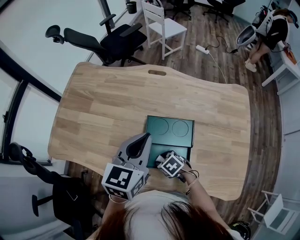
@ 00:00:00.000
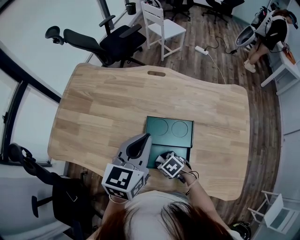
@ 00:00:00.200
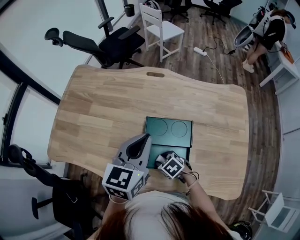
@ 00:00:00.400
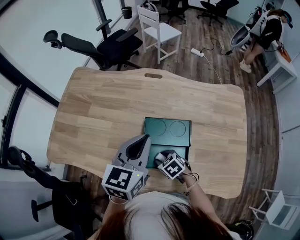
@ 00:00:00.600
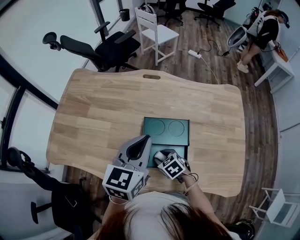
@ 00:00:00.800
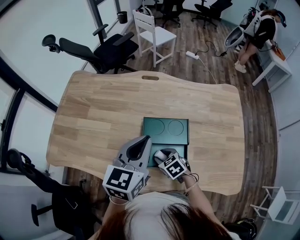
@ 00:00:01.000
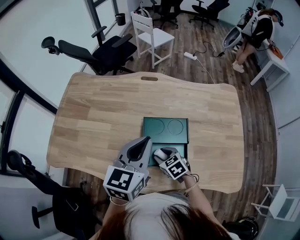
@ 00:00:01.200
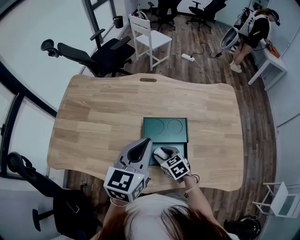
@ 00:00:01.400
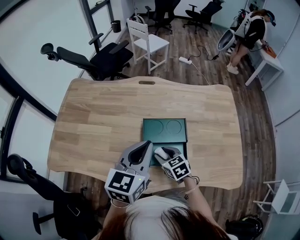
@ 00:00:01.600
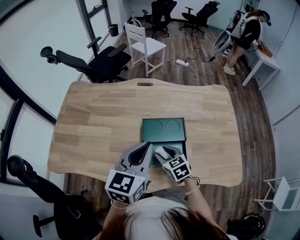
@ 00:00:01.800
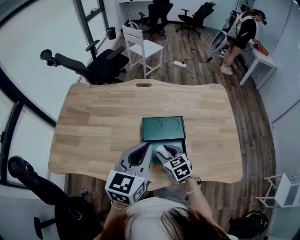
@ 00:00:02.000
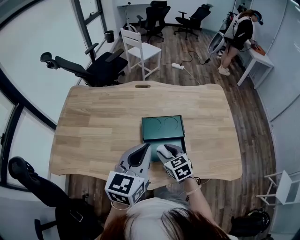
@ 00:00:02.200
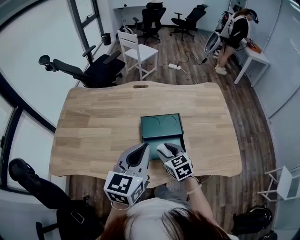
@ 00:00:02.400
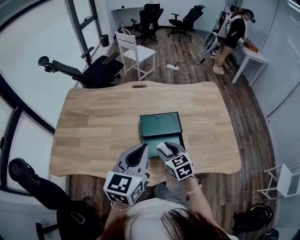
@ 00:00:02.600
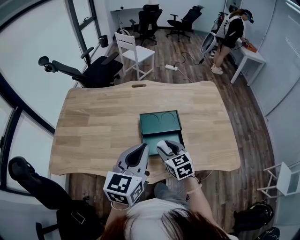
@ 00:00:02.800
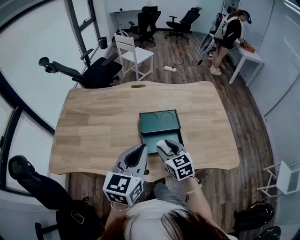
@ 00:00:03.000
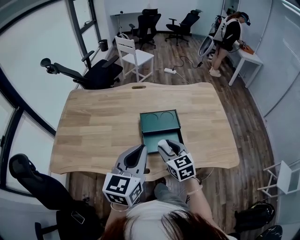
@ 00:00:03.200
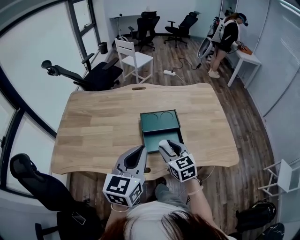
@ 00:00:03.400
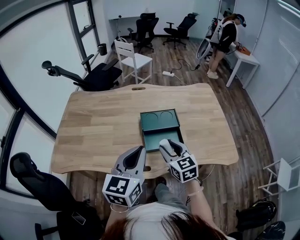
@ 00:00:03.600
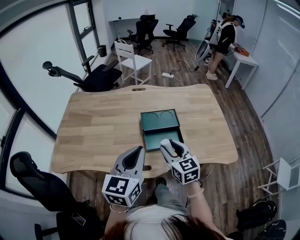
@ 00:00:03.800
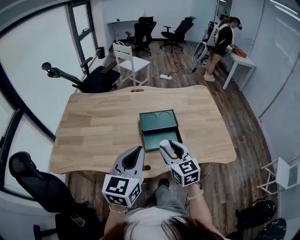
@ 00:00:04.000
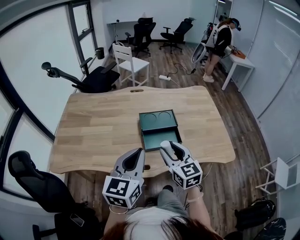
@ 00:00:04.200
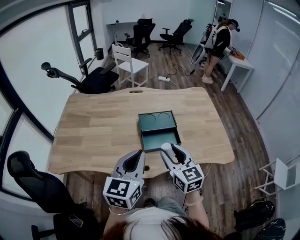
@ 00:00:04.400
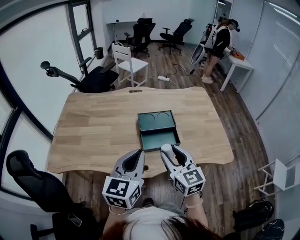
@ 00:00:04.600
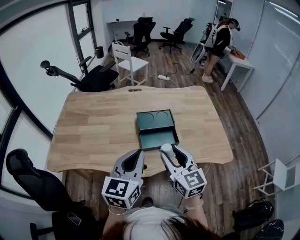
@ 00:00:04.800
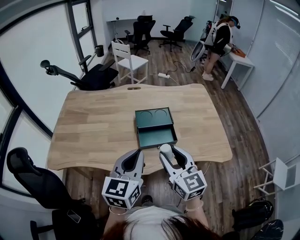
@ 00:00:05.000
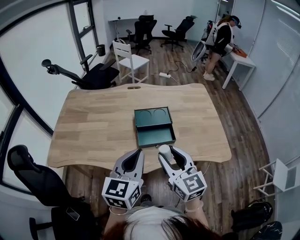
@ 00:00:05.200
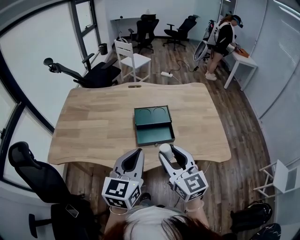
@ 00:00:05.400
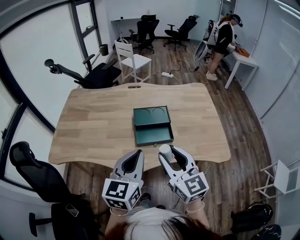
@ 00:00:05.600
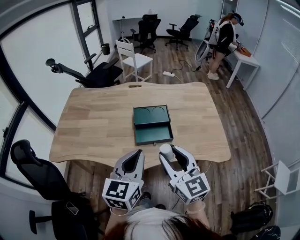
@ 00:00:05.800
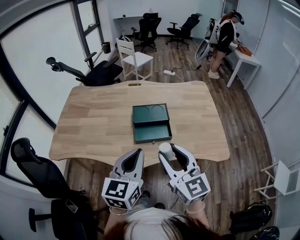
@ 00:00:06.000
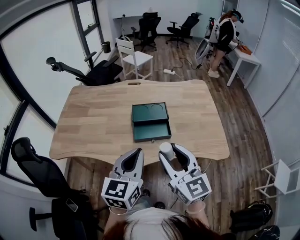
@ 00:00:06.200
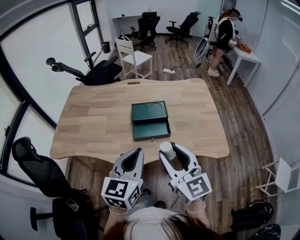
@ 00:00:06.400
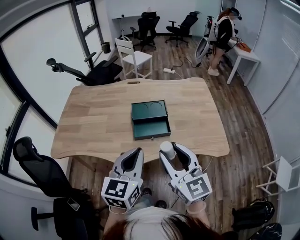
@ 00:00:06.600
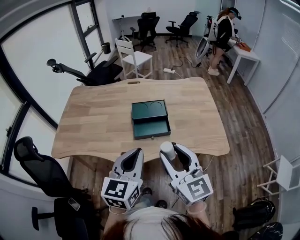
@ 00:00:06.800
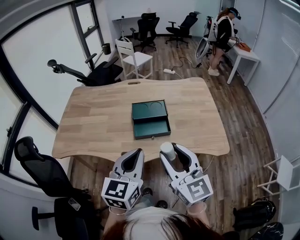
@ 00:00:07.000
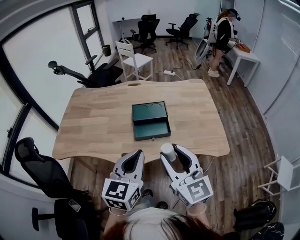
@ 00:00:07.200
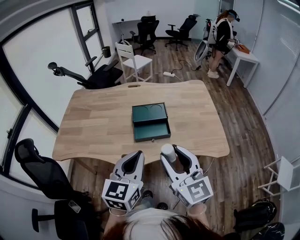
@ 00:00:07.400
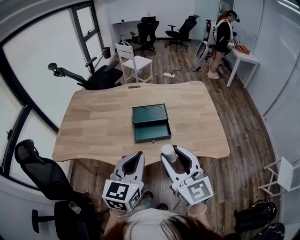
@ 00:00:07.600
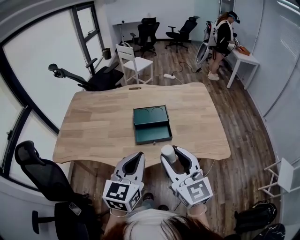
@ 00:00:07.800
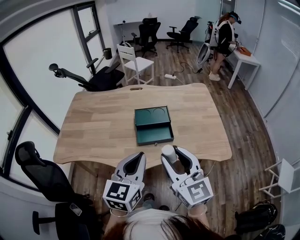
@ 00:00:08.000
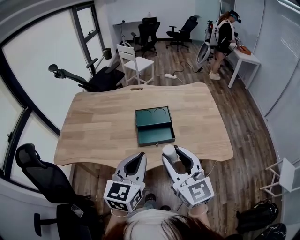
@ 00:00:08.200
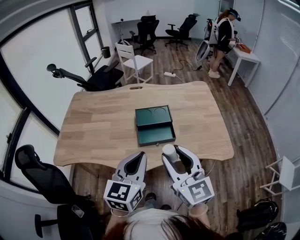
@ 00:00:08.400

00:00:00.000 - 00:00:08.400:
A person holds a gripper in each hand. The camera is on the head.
00:00:00.000 - 00:00:01.400: The left gripper shifts by approximately 5 cm, while the right gripper is displaced upward by about 10 cm, and rotates about 30 degrees.
00:00:01.400 - 00:00:02.800: The left gripper shifts about 10 cm backward. Meanwhile the right gripper is displaced upward and backward by about 10 cm, and changes its angle by about 20 degrees.
00:00:02.800 - 00:00:04.200: The right gripper travels backward and upward by some 15 cm. Meanwhile the left gripper shifts about 10 cm backward.
00:00:04.200 - 00:00:05.600: The right gripper travels backward, upward and to the right by some 10 cm; the left gripper moves to the right, approximately 5 cm.
00:00:05.600 - 00:00:07.000: The left gripper ends up some 5 cm from where it was; the right gripper travels backward by some 5 cm.
00:00:07.000 - 00:00:08.400: The grippers make only small movements.

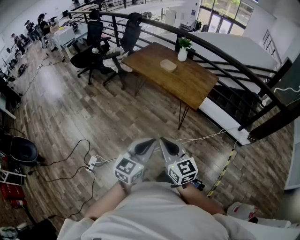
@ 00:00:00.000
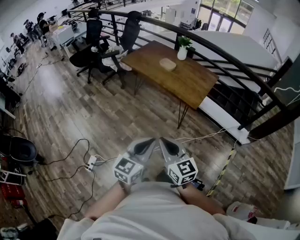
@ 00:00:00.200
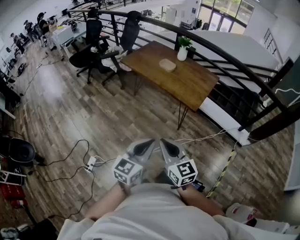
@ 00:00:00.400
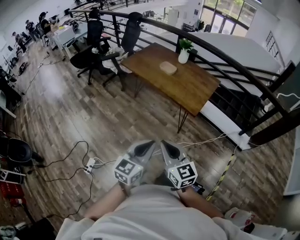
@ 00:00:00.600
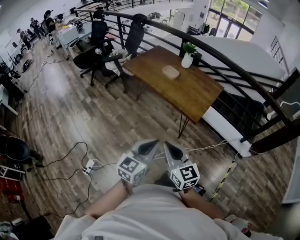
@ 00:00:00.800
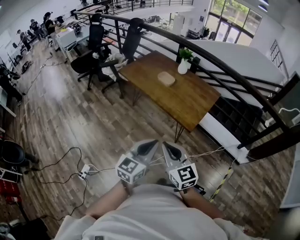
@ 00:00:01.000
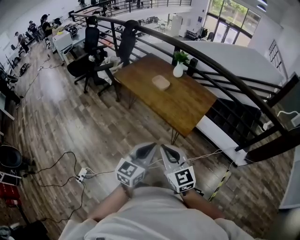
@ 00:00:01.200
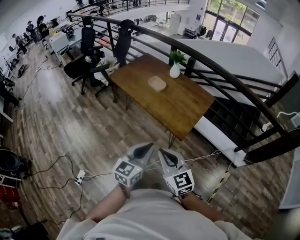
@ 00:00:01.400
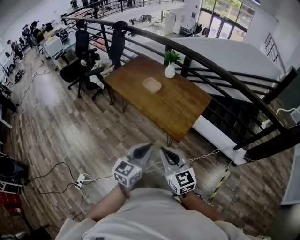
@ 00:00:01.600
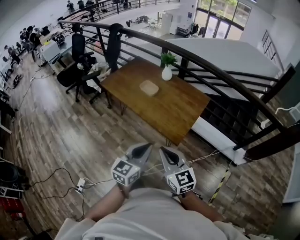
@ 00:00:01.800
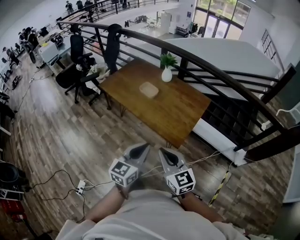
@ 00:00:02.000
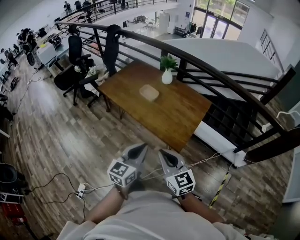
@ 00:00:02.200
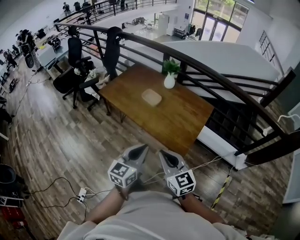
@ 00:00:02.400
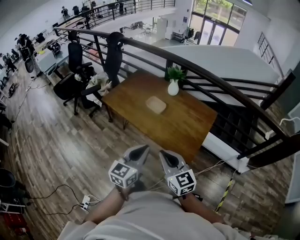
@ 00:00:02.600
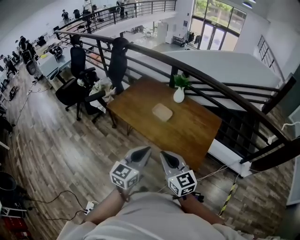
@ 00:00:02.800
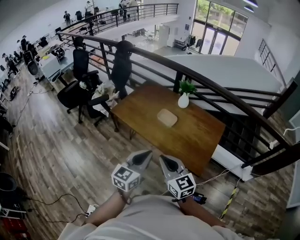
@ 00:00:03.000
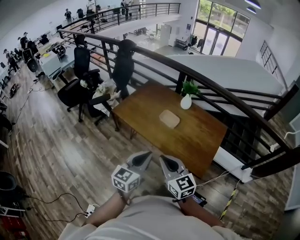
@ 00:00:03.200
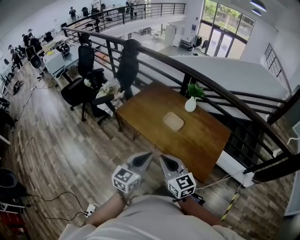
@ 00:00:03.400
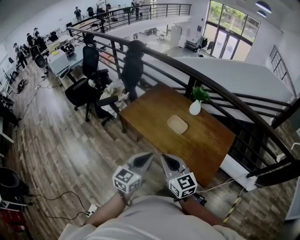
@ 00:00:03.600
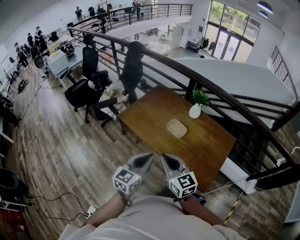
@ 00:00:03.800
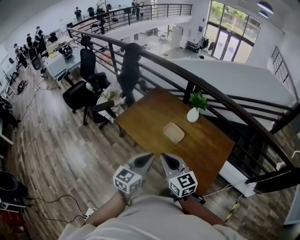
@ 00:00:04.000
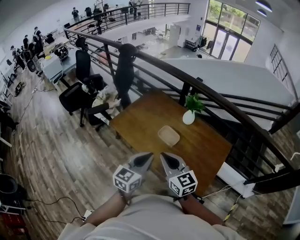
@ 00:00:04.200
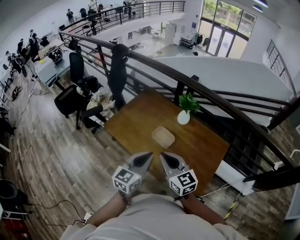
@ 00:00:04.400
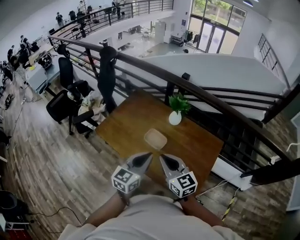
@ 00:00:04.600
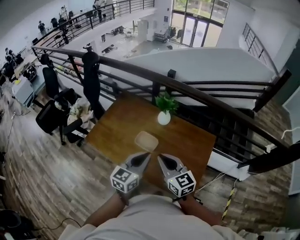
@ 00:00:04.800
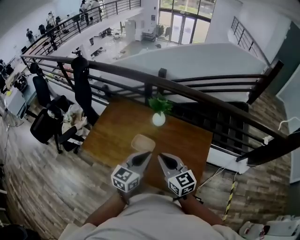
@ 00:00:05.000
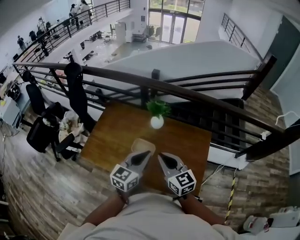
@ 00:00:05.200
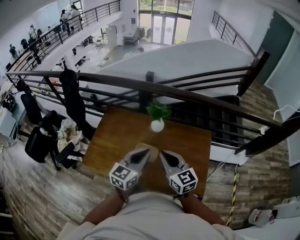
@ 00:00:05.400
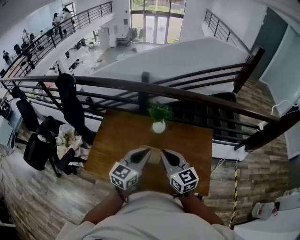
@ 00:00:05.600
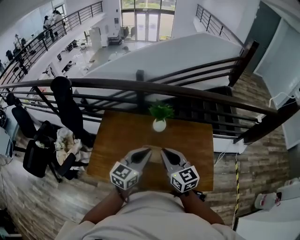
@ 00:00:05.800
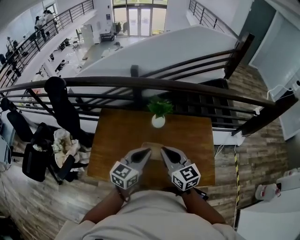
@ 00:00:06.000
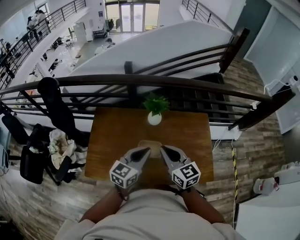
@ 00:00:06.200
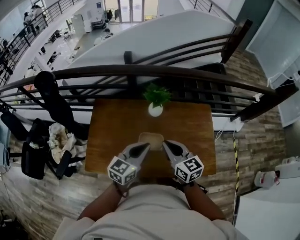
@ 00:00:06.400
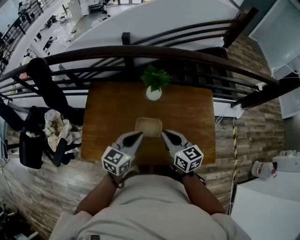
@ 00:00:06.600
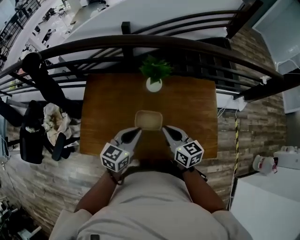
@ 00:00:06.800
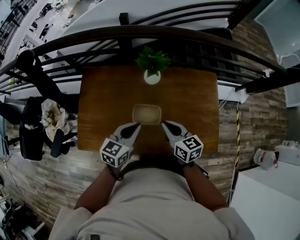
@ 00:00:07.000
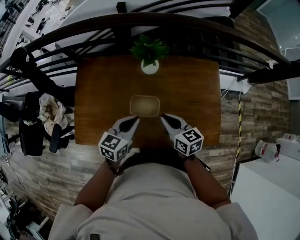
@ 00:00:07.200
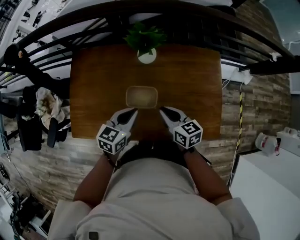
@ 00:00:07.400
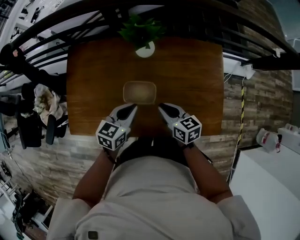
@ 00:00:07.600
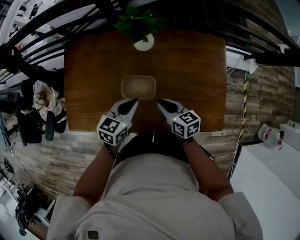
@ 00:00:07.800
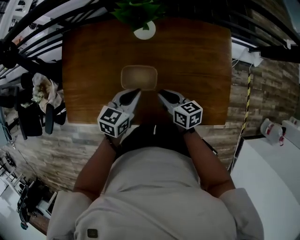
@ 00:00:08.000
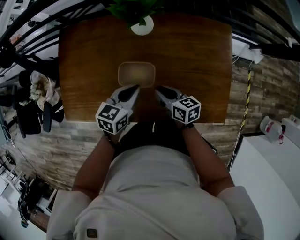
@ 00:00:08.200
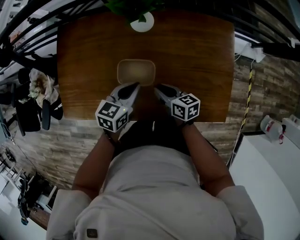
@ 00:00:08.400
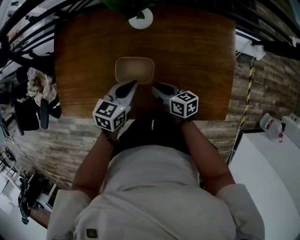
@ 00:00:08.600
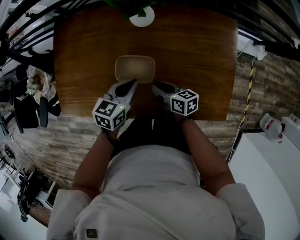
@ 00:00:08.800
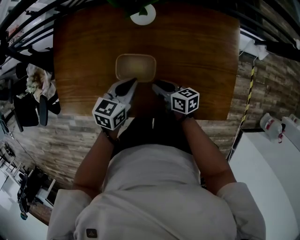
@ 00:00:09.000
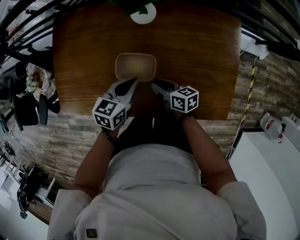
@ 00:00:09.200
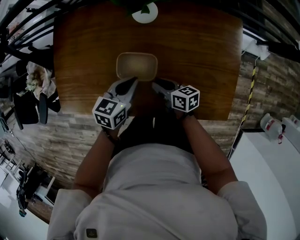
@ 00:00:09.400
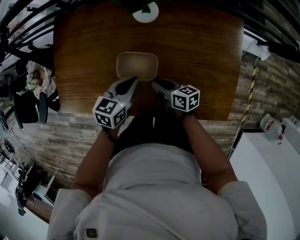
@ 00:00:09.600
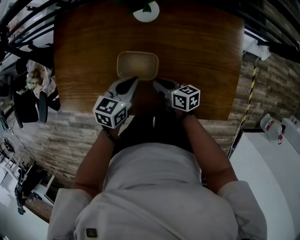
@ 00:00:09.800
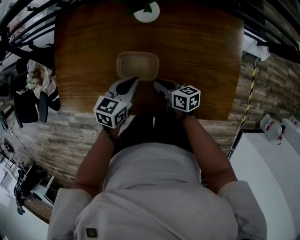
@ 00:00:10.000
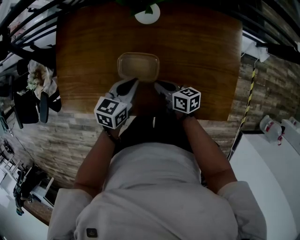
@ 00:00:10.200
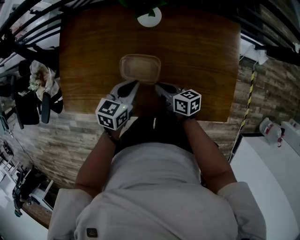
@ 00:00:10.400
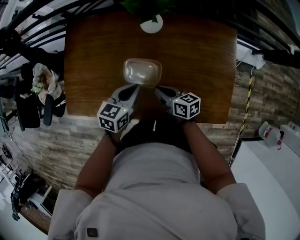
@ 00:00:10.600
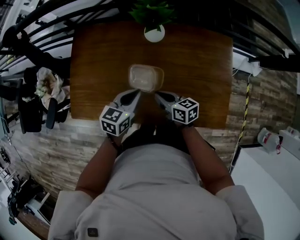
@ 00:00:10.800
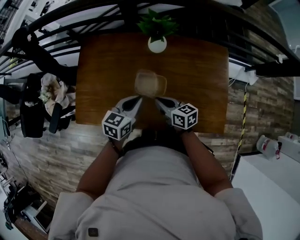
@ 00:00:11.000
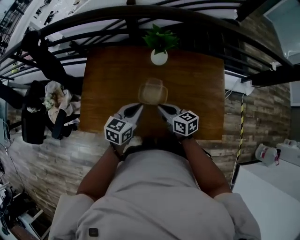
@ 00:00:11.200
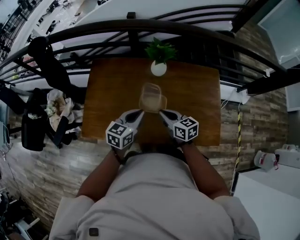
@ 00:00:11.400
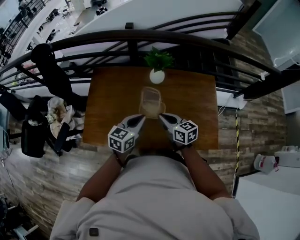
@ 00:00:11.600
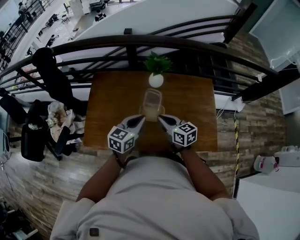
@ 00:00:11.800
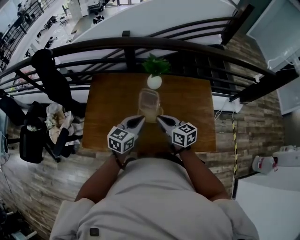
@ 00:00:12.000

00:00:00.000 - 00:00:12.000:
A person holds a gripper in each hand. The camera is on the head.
00:00:00.000 - 00:00:01.600: The two grippers go approximately 35 cm forward and to the right.
00:00:01.600 - 00:00:03.000: The grippers both shift forward and to the left by some 35 cm.
00:00:03.000 - 00:00:04.400: The grippers both shift forward by roughly 25 cm.
00:00:04.400 - 00:00:06.000: The right gripper ends up approximately 20 cm from where it was, and swivels some 40 degrees. Meanwhile the left gripper changes place by roughly 25 cm, and turns by some 40 degrees.
00:00:06.000 - 00:00:07.600: Both grippers move downward, some 25 cm. The right gripper rotates about 30 degrees, while the left gripper turns by approximately 20 degrees.
00:00:07.600 - 00:00:09.000: The left gripper goes some 10 cm downward. The right gripper travels downward by approximately 15 cm.
00:00:09.000 - 00:00:10.400: The grippers make only small movements.
00:00:10.400 - 00:00:12.000: The two grippers go about 25 cm upward. The right gripper rotates approximately 30 degrees. The left gripper changes its angle by approximately 20 degrees.

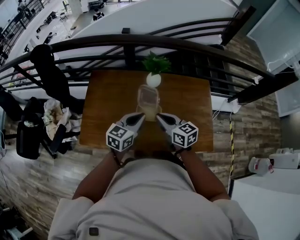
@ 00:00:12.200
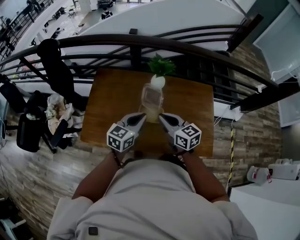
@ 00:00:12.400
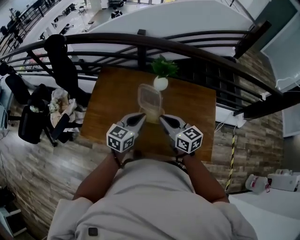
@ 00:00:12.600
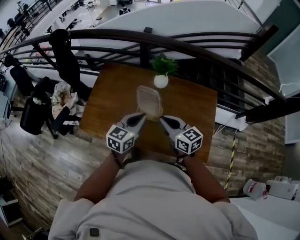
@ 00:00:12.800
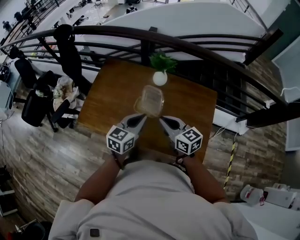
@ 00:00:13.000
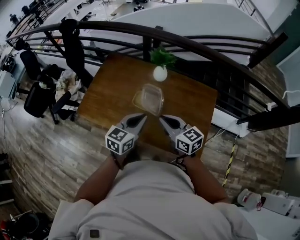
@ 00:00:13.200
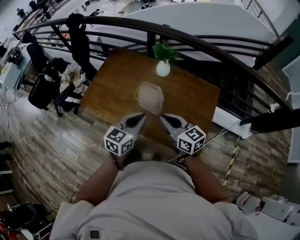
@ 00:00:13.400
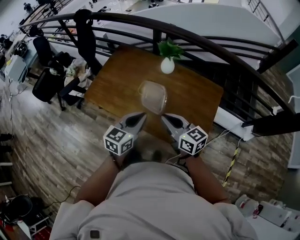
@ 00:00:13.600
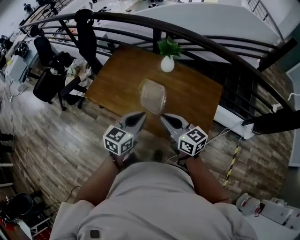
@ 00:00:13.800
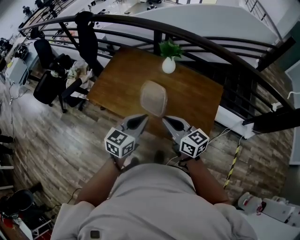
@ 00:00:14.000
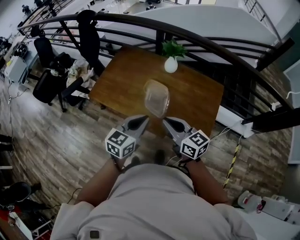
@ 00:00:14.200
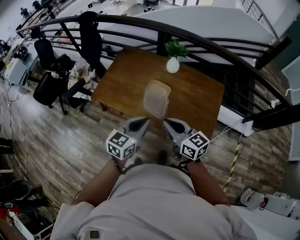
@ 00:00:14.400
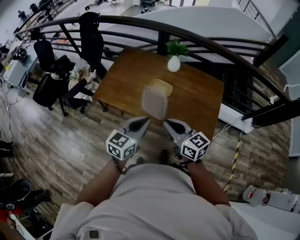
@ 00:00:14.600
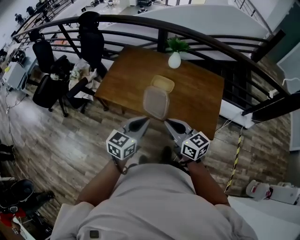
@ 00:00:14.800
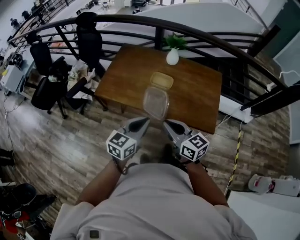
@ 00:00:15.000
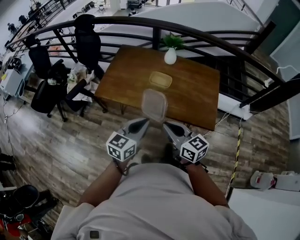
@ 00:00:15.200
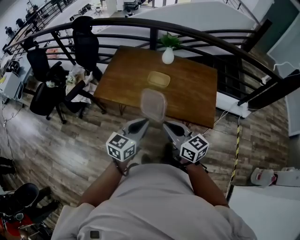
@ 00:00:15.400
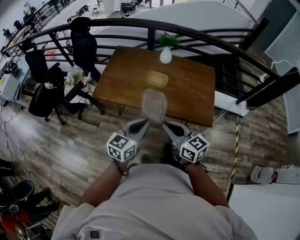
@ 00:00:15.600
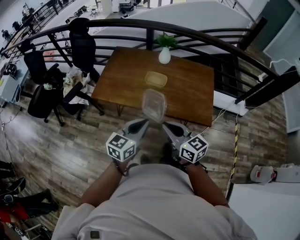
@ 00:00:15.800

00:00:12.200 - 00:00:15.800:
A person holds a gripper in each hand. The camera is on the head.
00:00:12.200 - 00:00:14.000: Both grippers move backward and to the right, about 25 cm. The left gripper changes its angle by approximately 20 degrees. Meanwhile the right gripper changes its angle by roughly 20 degrees.
00:00:14.000 - 00:00:15.800: Both grippers travel together backward and to the left, approximately 20 cm.
